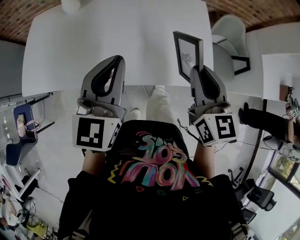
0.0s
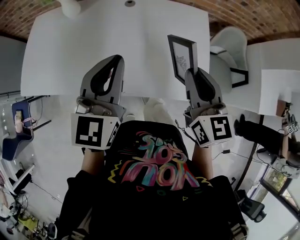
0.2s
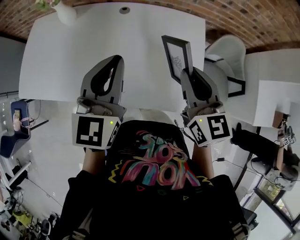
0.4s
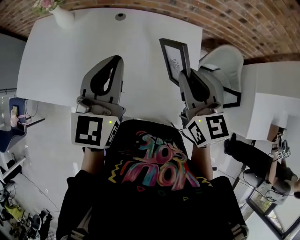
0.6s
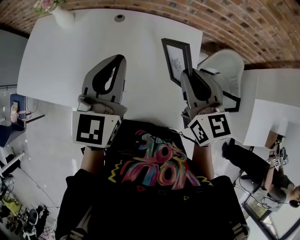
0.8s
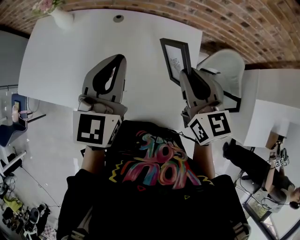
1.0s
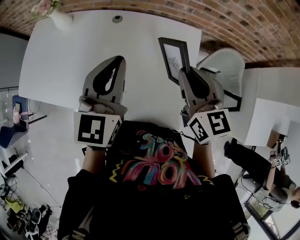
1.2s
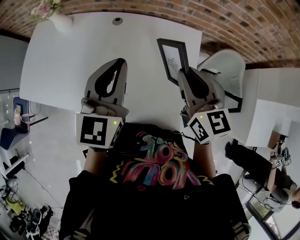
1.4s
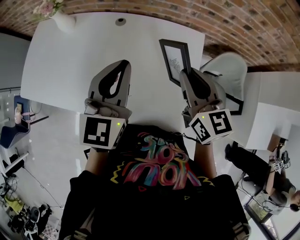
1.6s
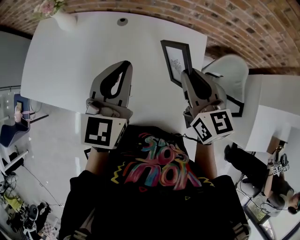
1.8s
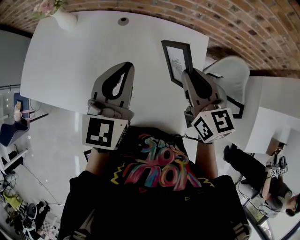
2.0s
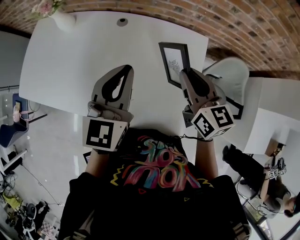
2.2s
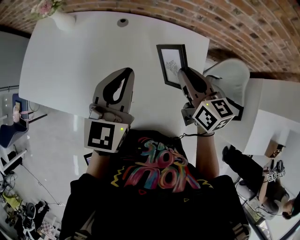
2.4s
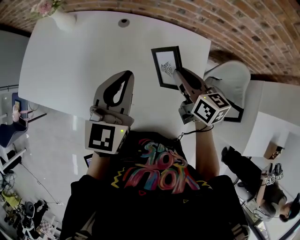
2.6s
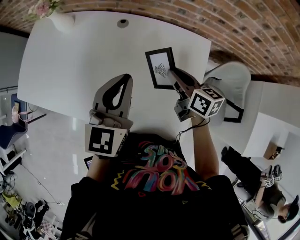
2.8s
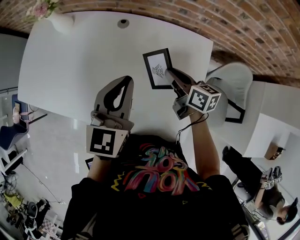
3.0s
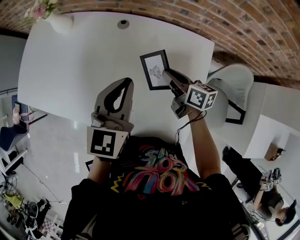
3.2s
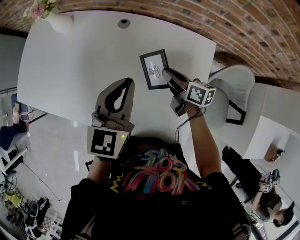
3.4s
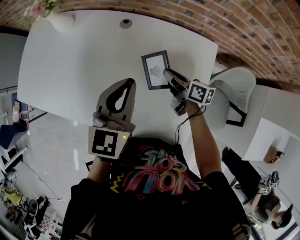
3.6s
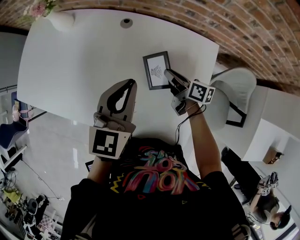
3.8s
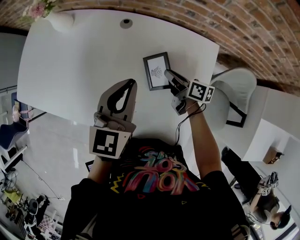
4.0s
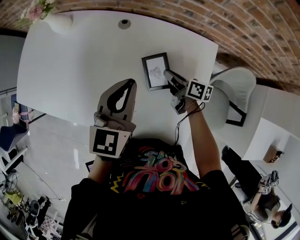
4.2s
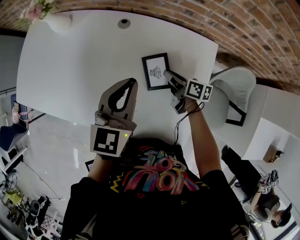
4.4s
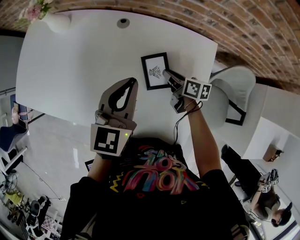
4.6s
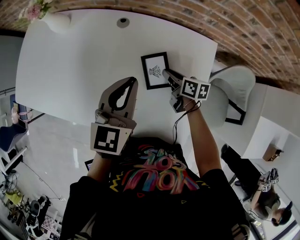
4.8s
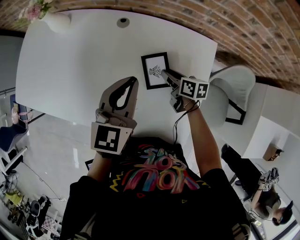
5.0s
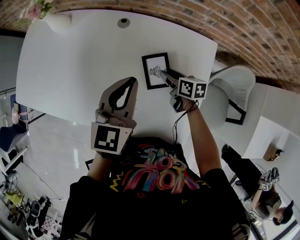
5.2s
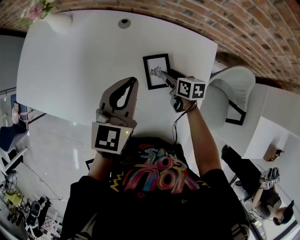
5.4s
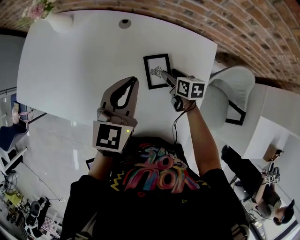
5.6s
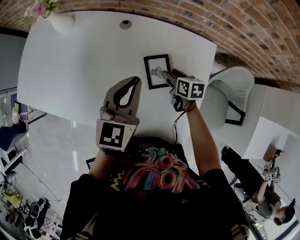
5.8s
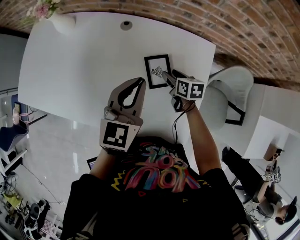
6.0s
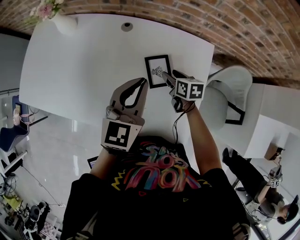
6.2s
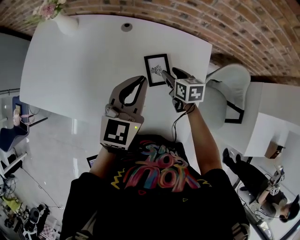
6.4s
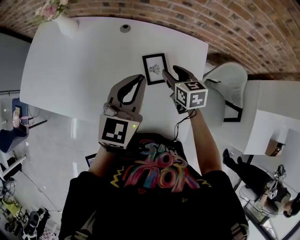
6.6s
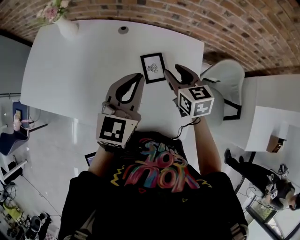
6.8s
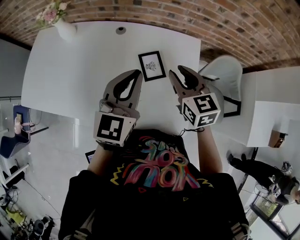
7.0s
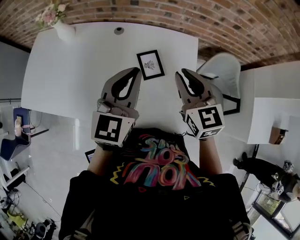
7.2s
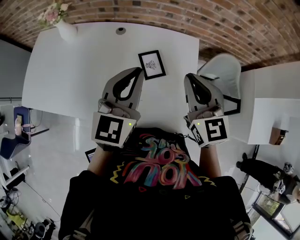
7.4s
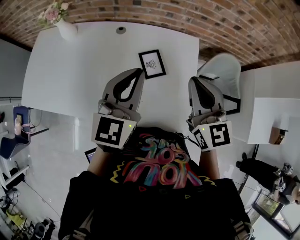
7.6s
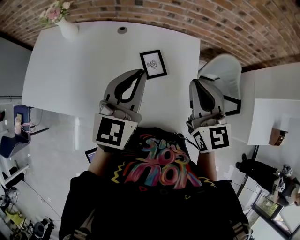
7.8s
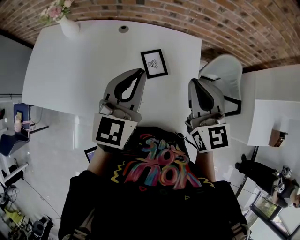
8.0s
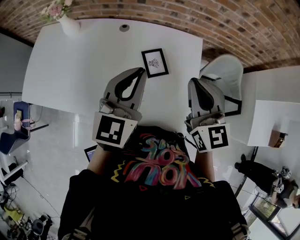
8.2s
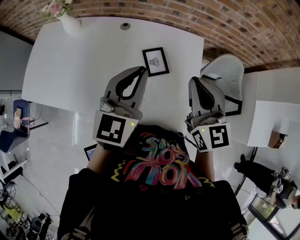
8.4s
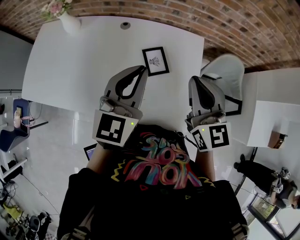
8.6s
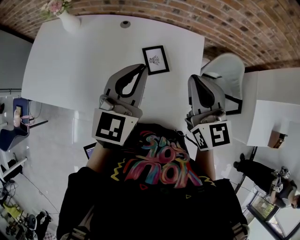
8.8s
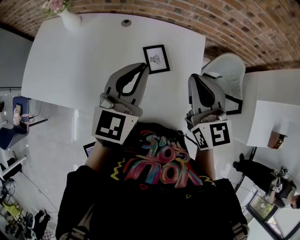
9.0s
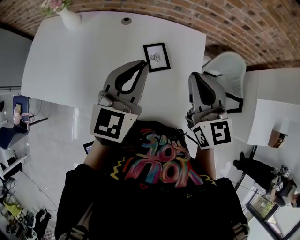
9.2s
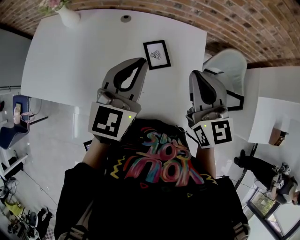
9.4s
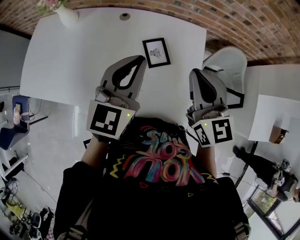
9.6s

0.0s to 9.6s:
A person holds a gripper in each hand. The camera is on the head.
0.0s to 1.6s: The right gripper heads forward and to the right, covering roughly 25 cm, and rotates roughly 20 degrees, while the left gripper is displaced to the right and forward by about 25 cm.
1.6s to 3.2s: The left gripper is displaced forward and downward by roughly 10 cm. The right gripper is displaced downward and forward by about 20 cm, and swivels roughly 40 degrees.
3.2s to 4.8s: The right gripper moves downward, about 10 cm.
4.8s to 6.4s: The right gripper moves upward, approximately 5 cm, turns by roughly 30 degrees, and opens its fingers. The left gripper ends up approximately 5 cm from where it was.
6.4s to 8.0s: The left gripper travels backward and upward by some 10 cm. Meanwhile the right gripper goes some 30 cm upward and backward, angles its fingers upward, by approximately 30 degrees, and closes up.
8.0s to 9.6s: The grippers make only small movements.

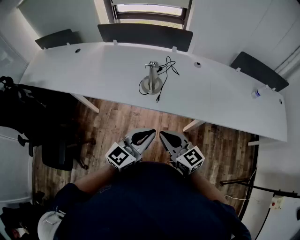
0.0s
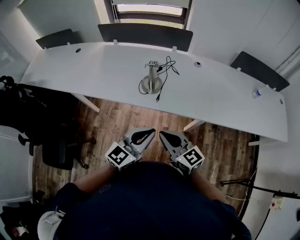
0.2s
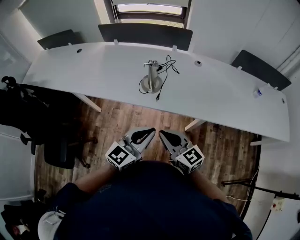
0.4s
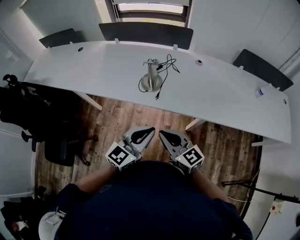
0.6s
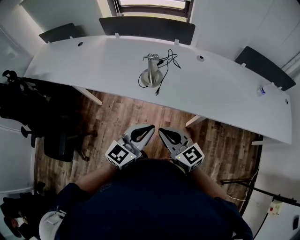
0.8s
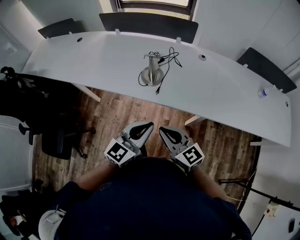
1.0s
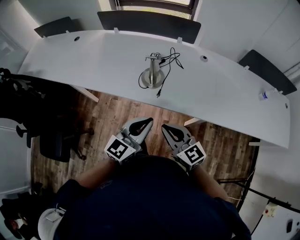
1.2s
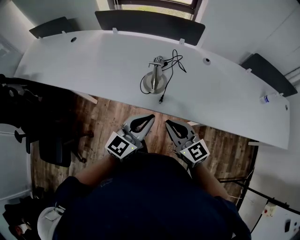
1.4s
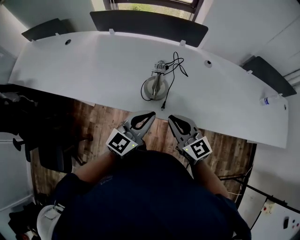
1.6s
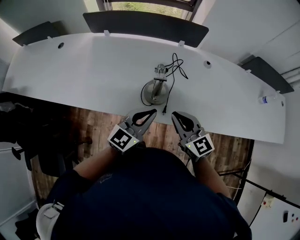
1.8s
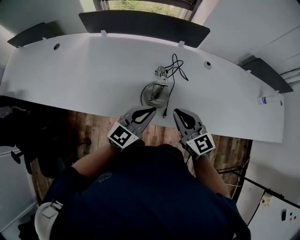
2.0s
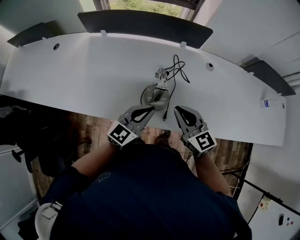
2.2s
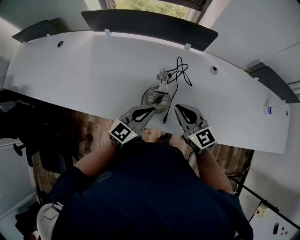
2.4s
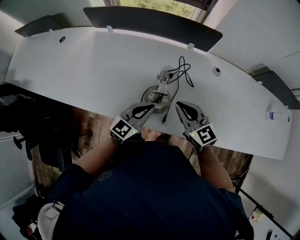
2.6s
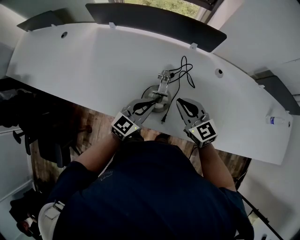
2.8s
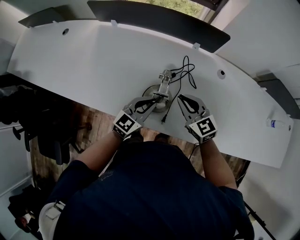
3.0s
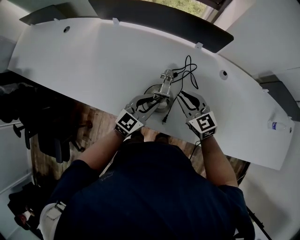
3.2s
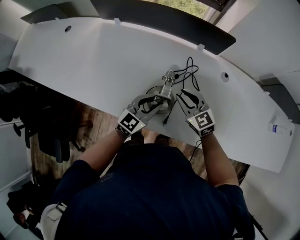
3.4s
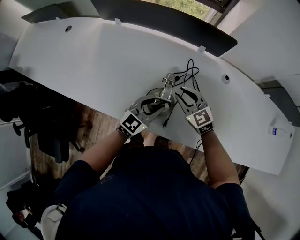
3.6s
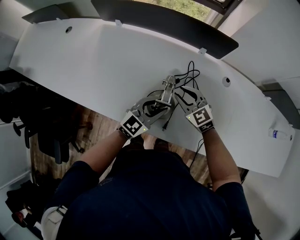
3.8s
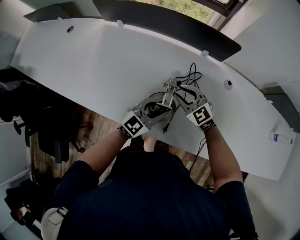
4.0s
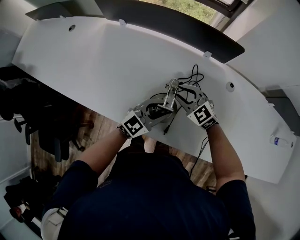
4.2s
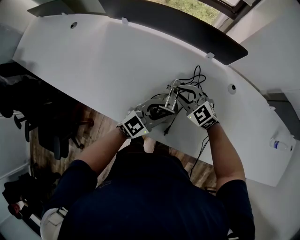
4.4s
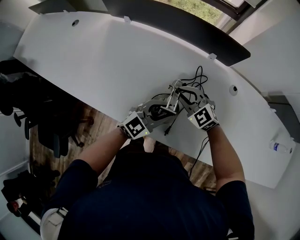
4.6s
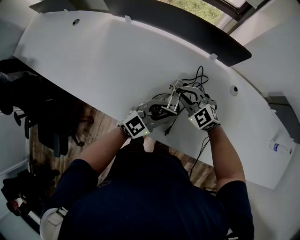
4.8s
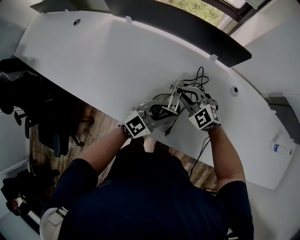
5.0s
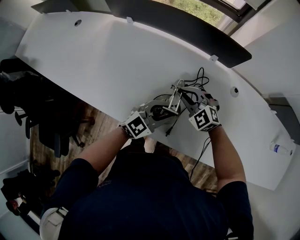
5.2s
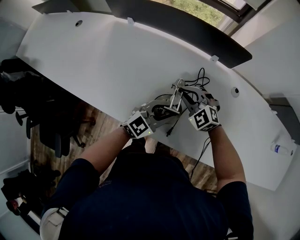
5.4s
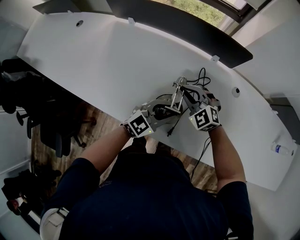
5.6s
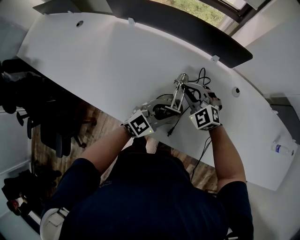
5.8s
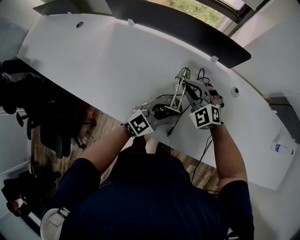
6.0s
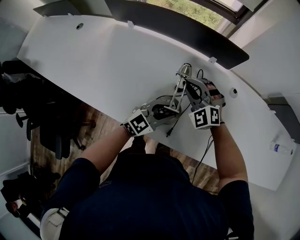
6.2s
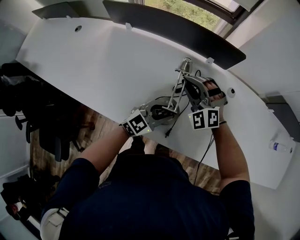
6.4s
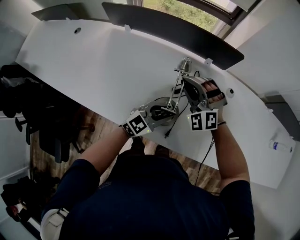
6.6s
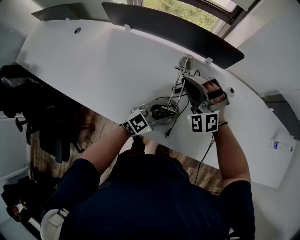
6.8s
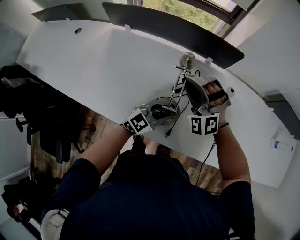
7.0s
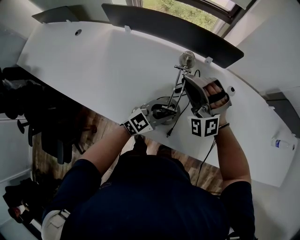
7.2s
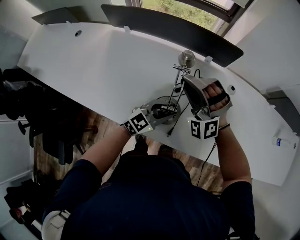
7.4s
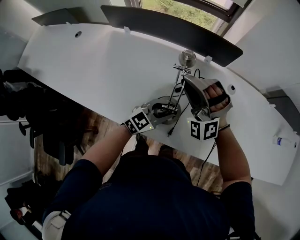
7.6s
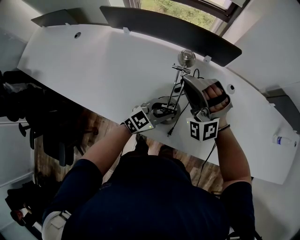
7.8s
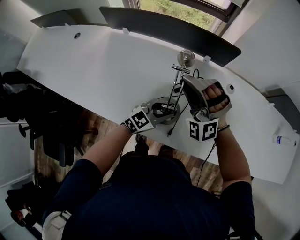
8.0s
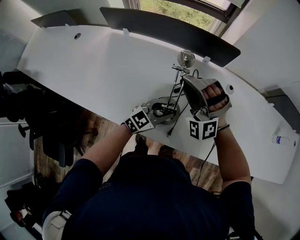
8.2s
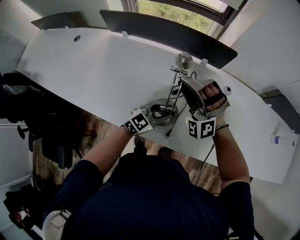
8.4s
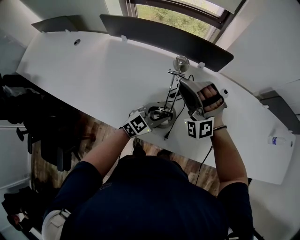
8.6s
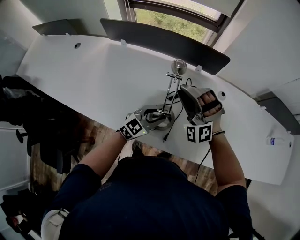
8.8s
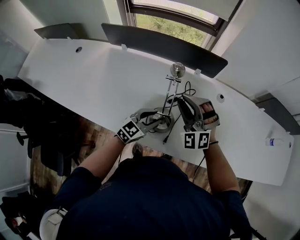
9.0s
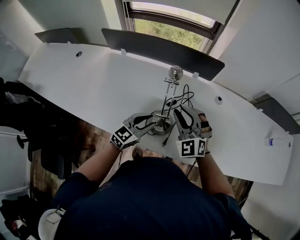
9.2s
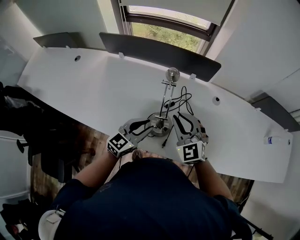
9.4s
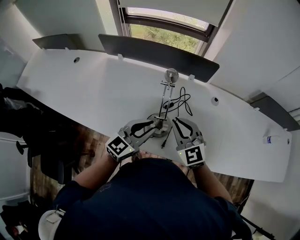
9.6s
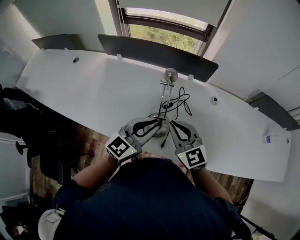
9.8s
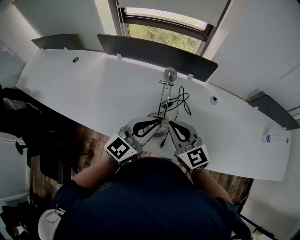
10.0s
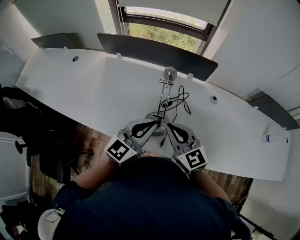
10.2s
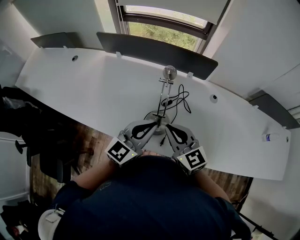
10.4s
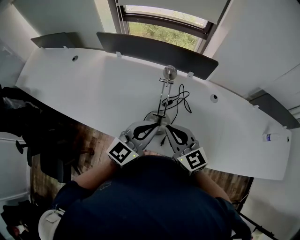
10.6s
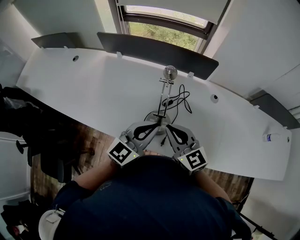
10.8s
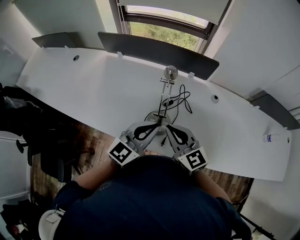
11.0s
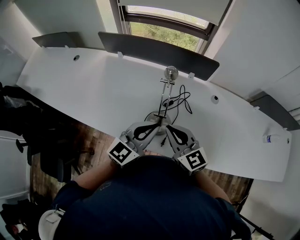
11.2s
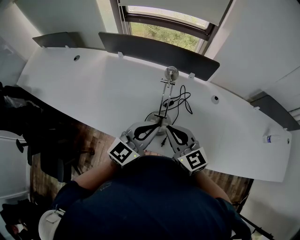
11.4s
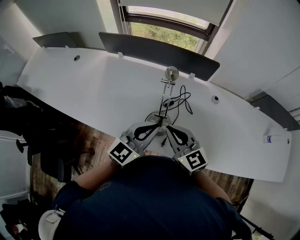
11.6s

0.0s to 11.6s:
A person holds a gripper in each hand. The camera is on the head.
0.0s to 1.4s: The two grippers go approximately 10 cm forward.
1.4s to 2.8s: The right gripper travels forward by some 25 cm. The left gripper is displaced forward and downward by approximately 25 cm.
2.8s to 4.4s: The right gripper moves forward and downward, approximately 15 cm, and changes its angle by roughly 30 degrees; the left gripper ends up about 5 cm from where it was, and opens its fingers.
4.4s to 5.8s: The grippers make only small movements.
5.8s to 7.2s: The right gripper is displaced upward by some 15 cm, and changes its angle by approximately 40 degrees.
7.2s to 8.8s: The grippers make only small movements.
8.8s to 10.2s: The right gripper is displaced backward by approximately 10 cm, rotates around the line of its fingers by roughly 80 degrees, clockwise from behind, and closes. The left gripper shifts some 15 cm upward, turns by roughly 20 degrees, and closes up.
10.2s to 11.6s: The grippers stay close to where they were, moving slightly.

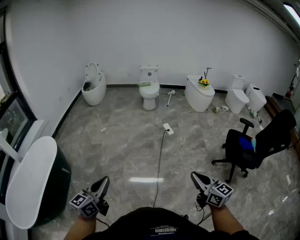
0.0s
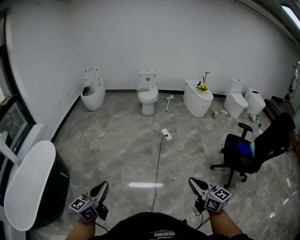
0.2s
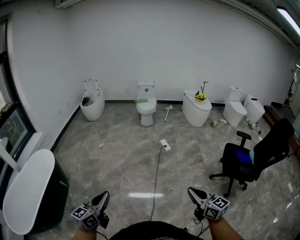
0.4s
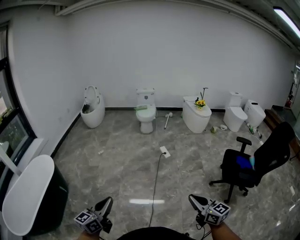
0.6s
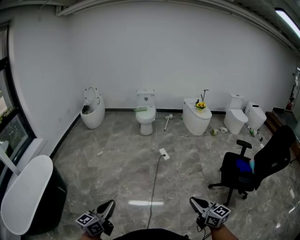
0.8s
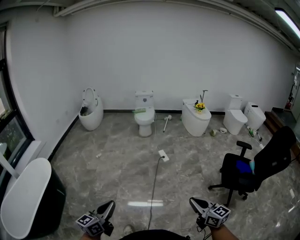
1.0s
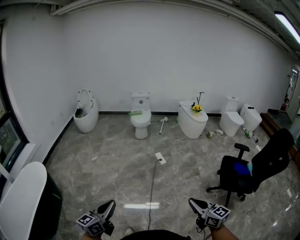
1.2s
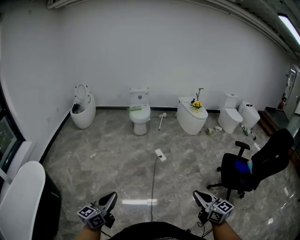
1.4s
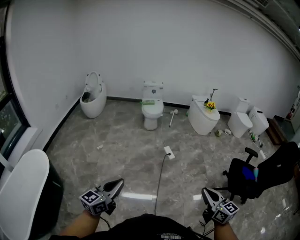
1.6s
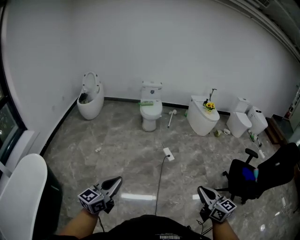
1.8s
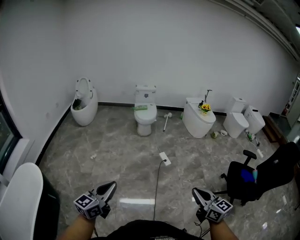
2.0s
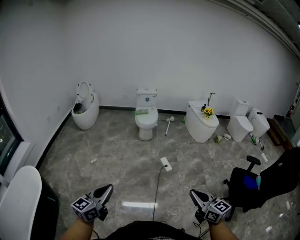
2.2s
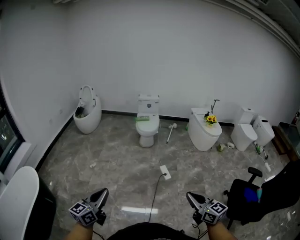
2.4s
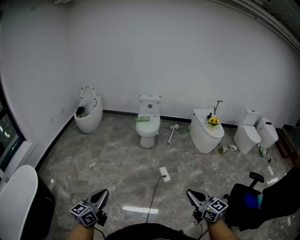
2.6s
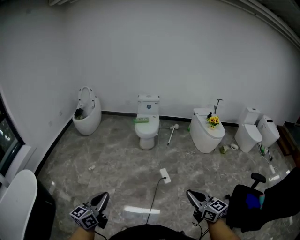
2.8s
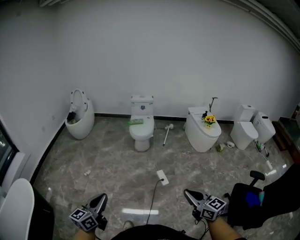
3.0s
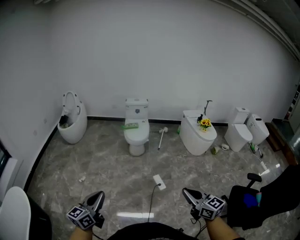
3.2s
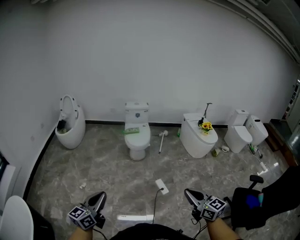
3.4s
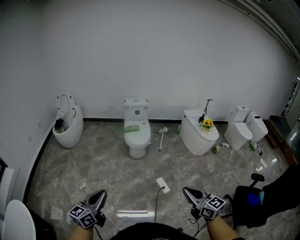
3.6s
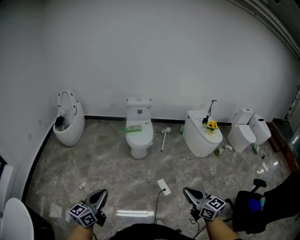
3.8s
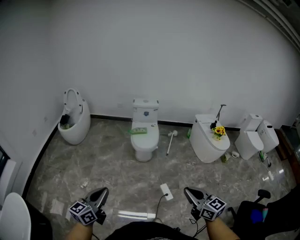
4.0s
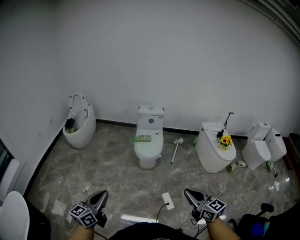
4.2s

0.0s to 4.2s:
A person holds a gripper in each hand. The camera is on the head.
0.0s to 1.4s: Both grippers travel together forward and to the right, approximately 20 cm.
1.4s to 2.8s: The grippers both shift forward by roughly 40 cm.
2.8s to 4.2s: The pair of grippers is taken forward, some 40 cm.
